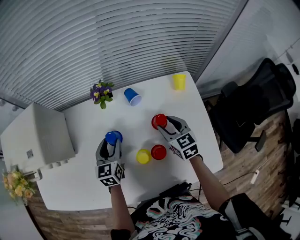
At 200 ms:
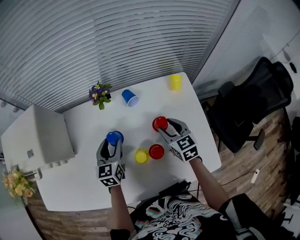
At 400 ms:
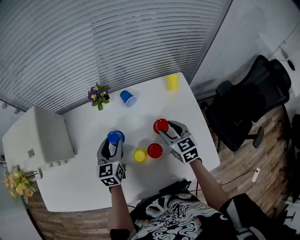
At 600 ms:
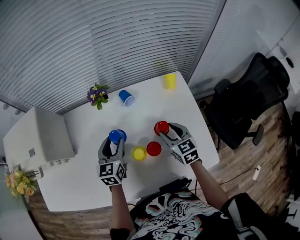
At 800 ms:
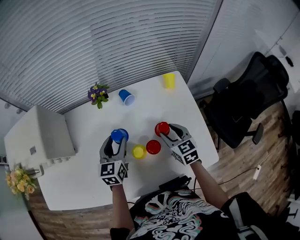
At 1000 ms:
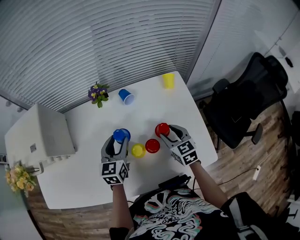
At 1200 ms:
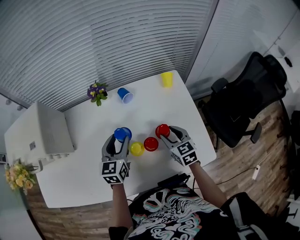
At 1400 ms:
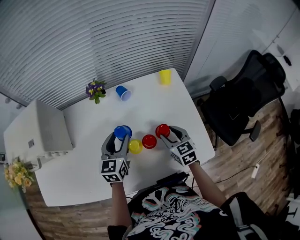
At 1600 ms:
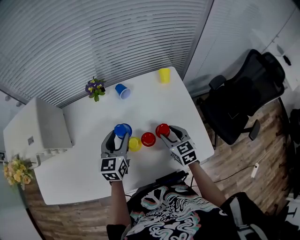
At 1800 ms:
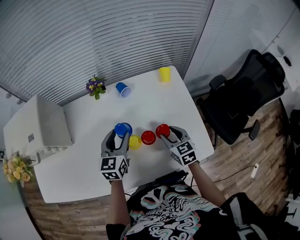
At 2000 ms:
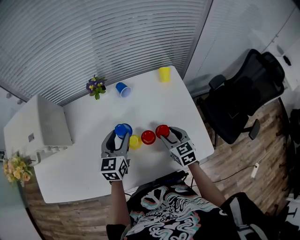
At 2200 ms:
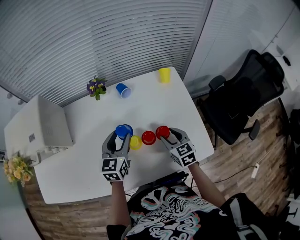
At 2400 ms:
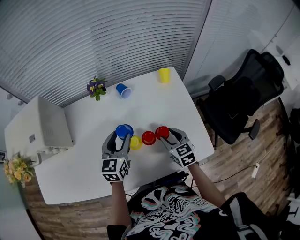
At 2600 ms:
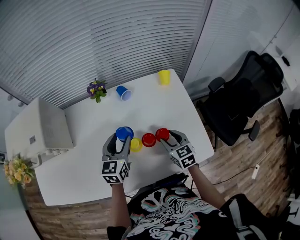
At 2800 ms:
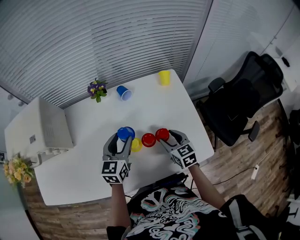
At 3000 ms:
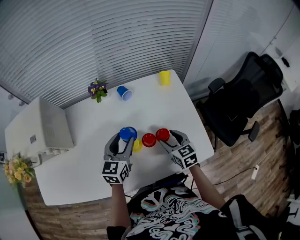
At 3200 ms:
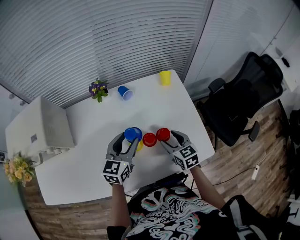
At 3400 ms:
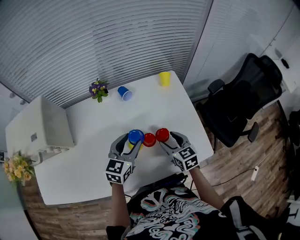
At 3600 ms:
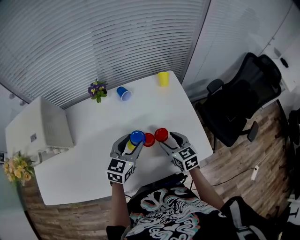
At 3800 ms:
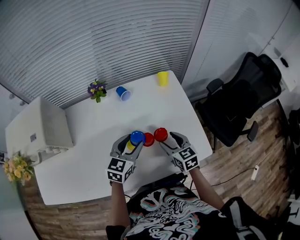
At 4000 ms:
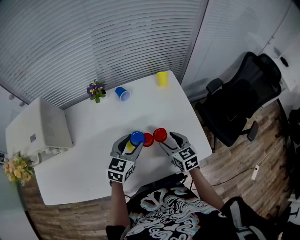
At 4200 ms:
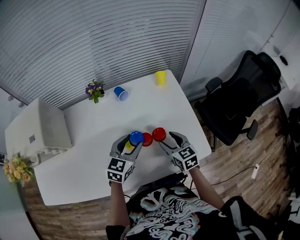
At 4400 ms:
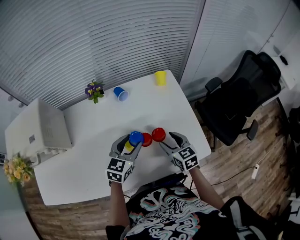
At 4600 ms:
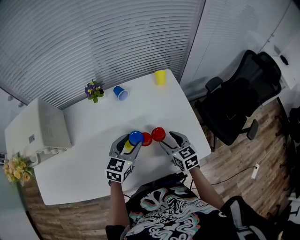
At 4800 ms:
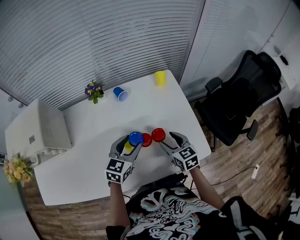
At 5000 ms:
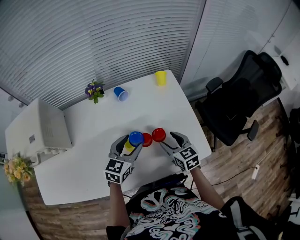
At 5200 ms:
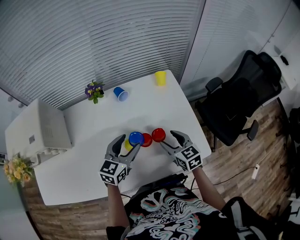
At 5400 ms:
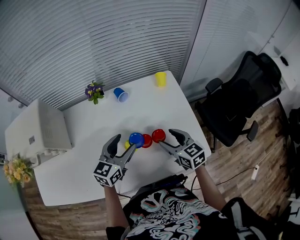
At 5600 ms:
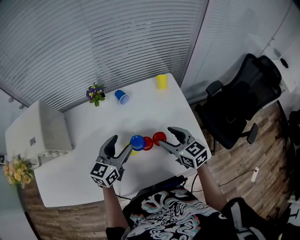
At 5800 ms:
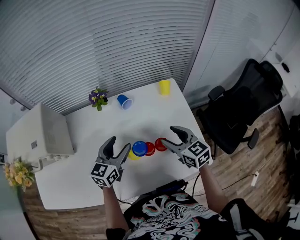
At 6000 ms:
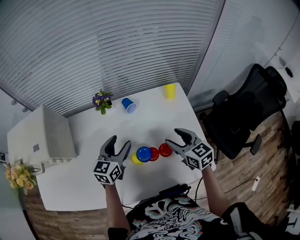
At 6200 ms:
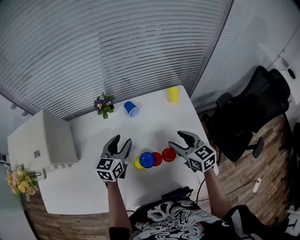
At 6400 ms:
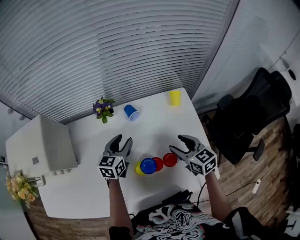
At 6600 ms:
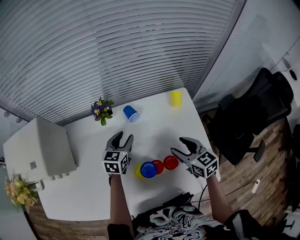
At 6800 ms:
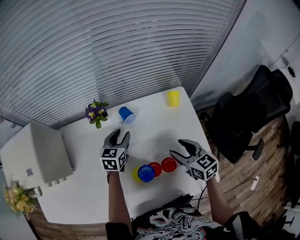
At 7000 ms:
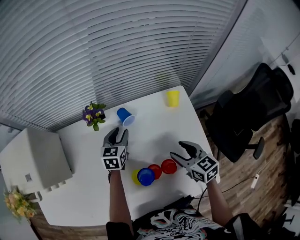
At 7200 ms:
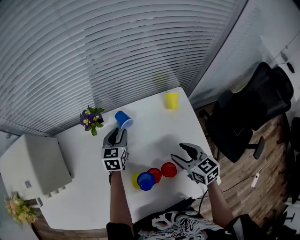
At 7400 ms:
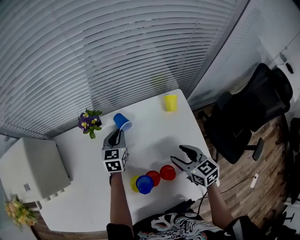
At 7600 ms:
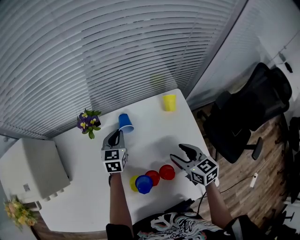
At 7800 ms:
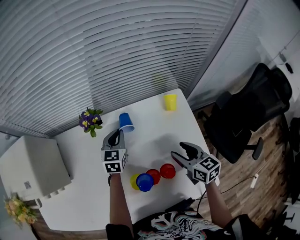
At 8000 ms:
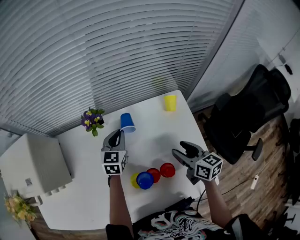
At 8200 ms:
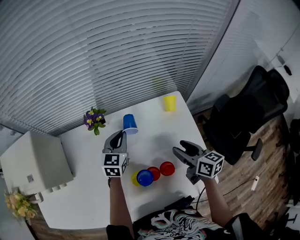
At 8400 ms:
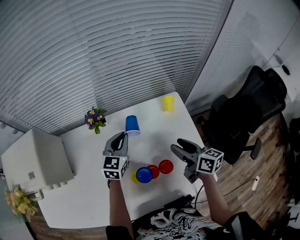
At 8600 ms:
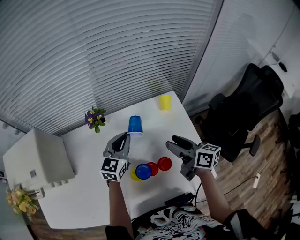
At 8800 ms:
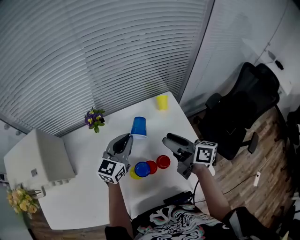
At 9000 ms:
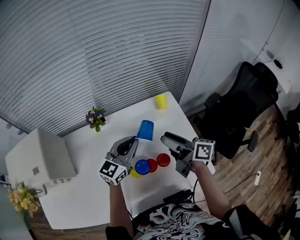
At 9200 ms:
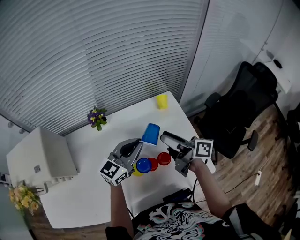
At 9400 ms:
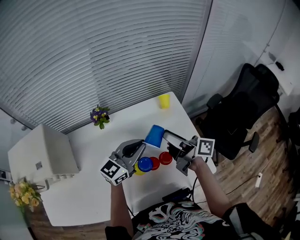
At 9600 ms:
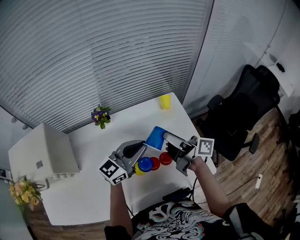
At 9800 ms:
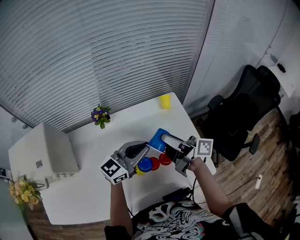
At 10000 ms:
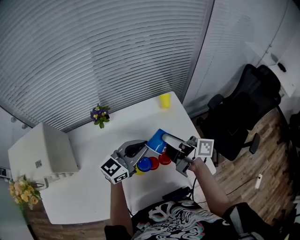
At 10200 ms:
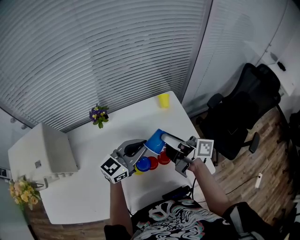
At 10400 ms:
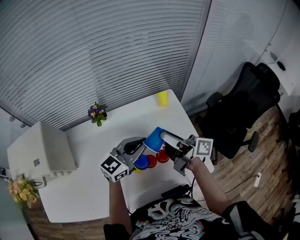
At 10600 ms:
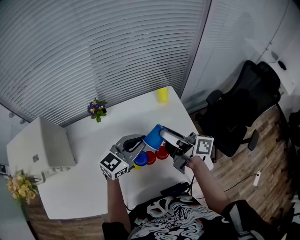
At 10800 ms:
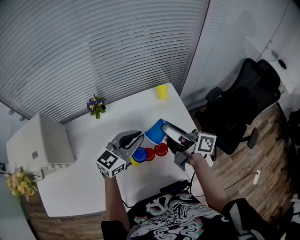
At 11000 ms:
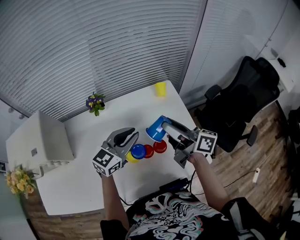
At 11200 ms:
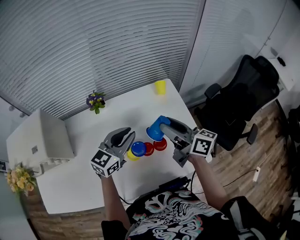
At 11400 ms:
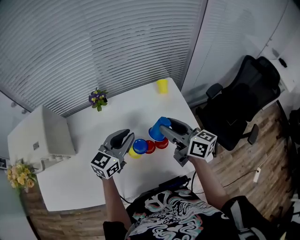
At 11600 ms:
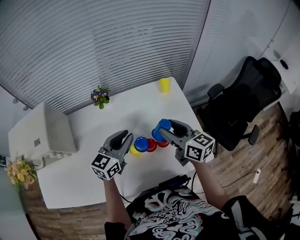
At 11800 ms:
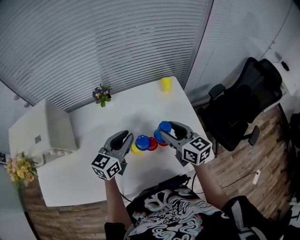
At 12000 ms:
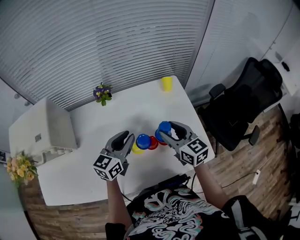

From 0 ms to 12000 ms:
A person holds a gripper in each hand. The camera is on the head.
From 0 ms to 1600 ms: The left gripper is displaced to the right, upward and backward by roughly 10 cm. Meanwhile the right gripper shifts approximately 10 cm backward.
From 1600 ms to 3000 ms: The grippers stay close to where they were, moving slightly.
From 3000 ms to 4400 ms: The left gripper moves to the right, approximately 5 cm.
From 4400 ms to 6000 ms: The left gripper travels to the left and forward by approximately 10 cm, while the right gripper is displaced upward and forward by approximately 10 cm.
From 6000 ms to 7600 ms: The right gripper goes approximately 5 cm downward; the left gripper goes roughly 20 cm forward and downward, and closes up.
From 7600 ms to 9000 ms: The left gripper shifts roughly 20 cm upward and backward, and changes its angle by about 40 degrees; the right gripper heads upward, covering about 15 cm, and tips its fingers upward by approximately 30 degrees.
From 9000 ms to 10400 ms: The left gripper changes place by some 5 cm.
From 10400 ms to 12000 ms: The left gripper travels to the left by approximately 10 cm, and rotates some 30 degrees, while the right gripper heads downward and backward, covering roughly 10 cm, and twists about 50 degrees counterclockwise, seen from behind.

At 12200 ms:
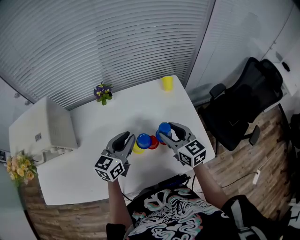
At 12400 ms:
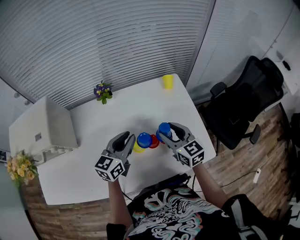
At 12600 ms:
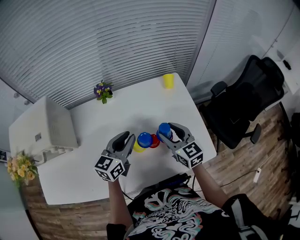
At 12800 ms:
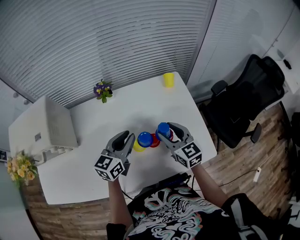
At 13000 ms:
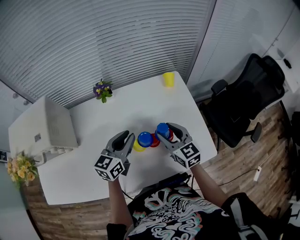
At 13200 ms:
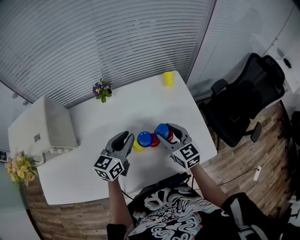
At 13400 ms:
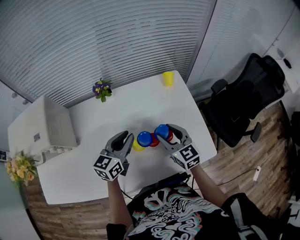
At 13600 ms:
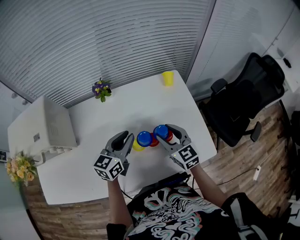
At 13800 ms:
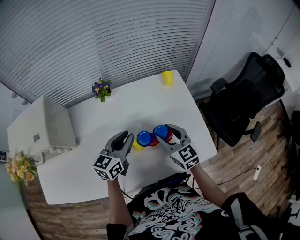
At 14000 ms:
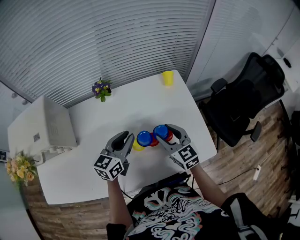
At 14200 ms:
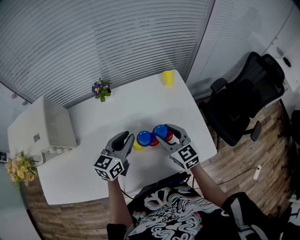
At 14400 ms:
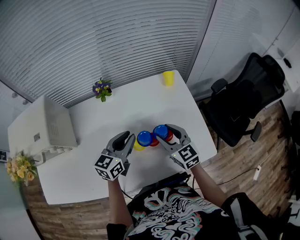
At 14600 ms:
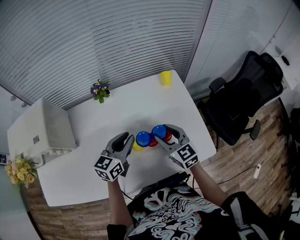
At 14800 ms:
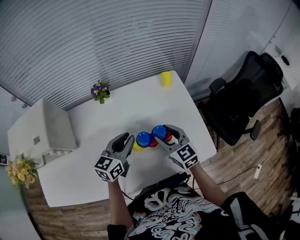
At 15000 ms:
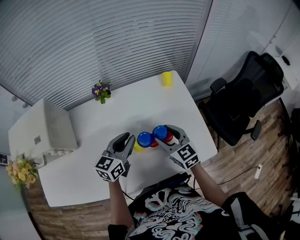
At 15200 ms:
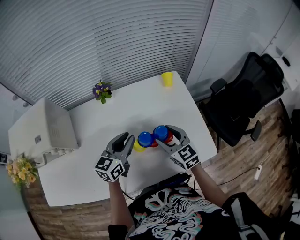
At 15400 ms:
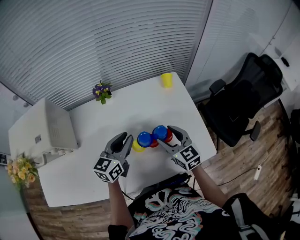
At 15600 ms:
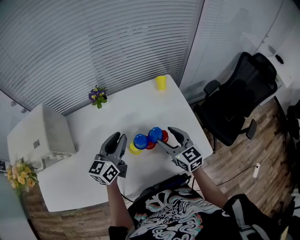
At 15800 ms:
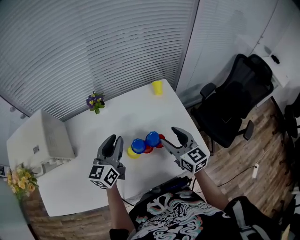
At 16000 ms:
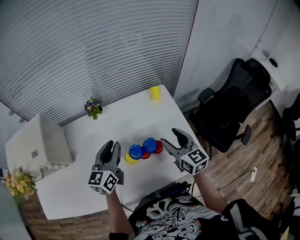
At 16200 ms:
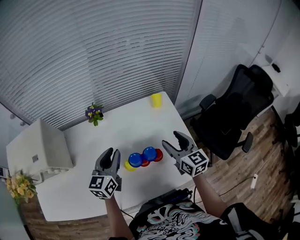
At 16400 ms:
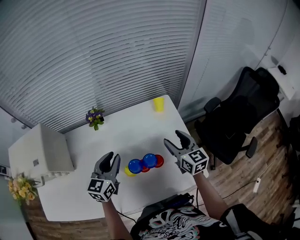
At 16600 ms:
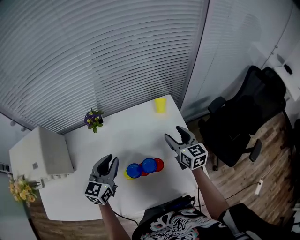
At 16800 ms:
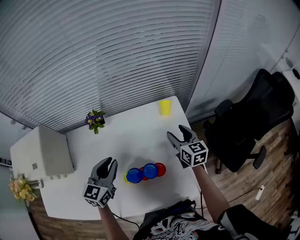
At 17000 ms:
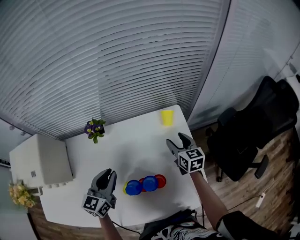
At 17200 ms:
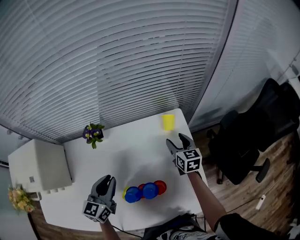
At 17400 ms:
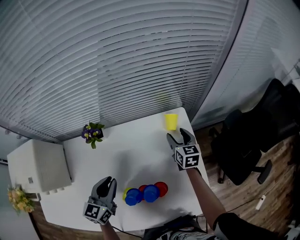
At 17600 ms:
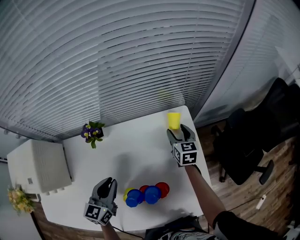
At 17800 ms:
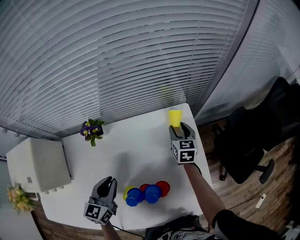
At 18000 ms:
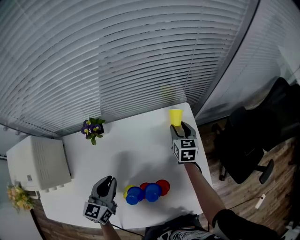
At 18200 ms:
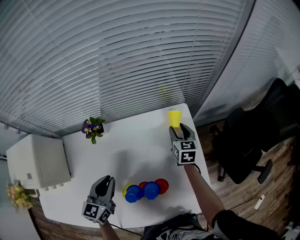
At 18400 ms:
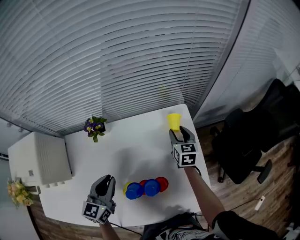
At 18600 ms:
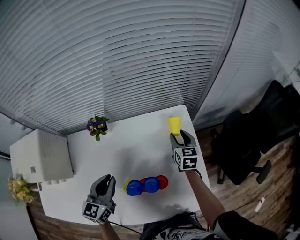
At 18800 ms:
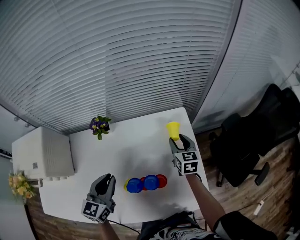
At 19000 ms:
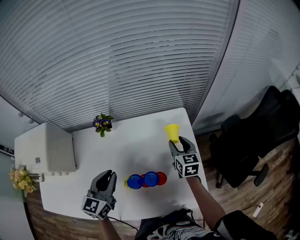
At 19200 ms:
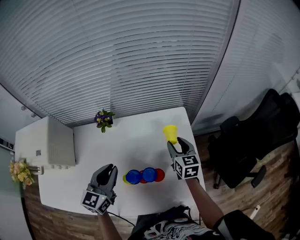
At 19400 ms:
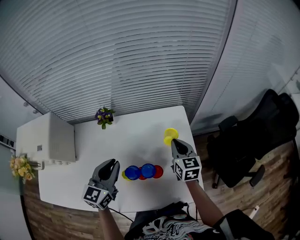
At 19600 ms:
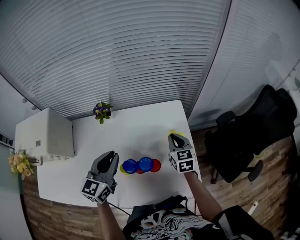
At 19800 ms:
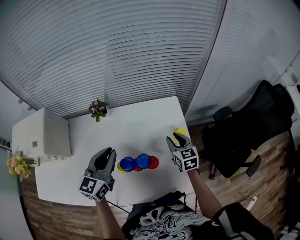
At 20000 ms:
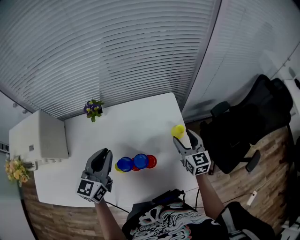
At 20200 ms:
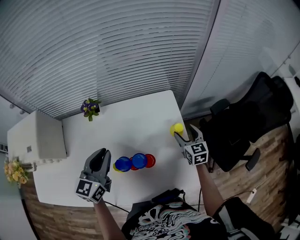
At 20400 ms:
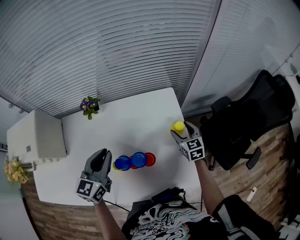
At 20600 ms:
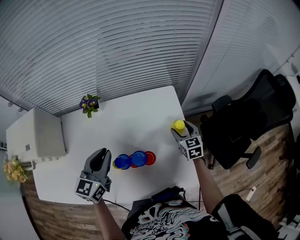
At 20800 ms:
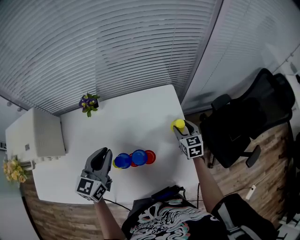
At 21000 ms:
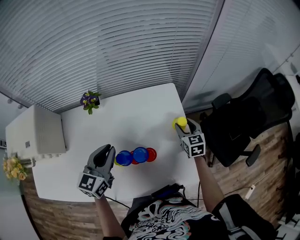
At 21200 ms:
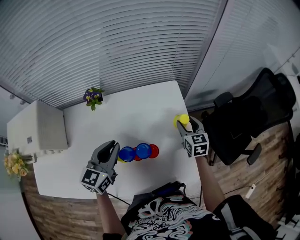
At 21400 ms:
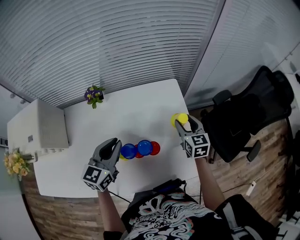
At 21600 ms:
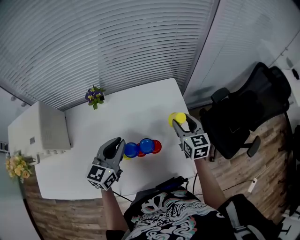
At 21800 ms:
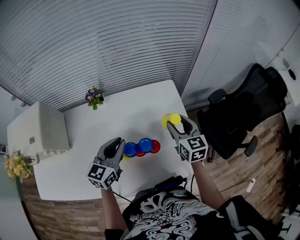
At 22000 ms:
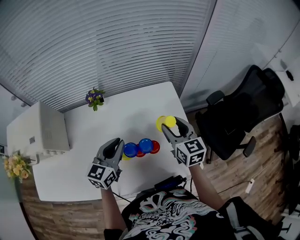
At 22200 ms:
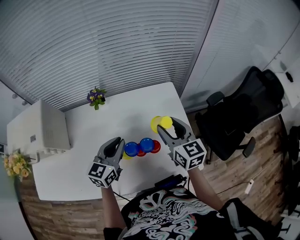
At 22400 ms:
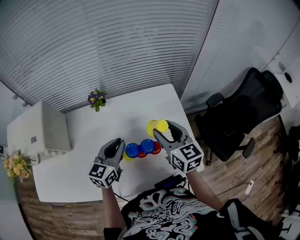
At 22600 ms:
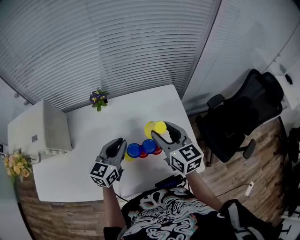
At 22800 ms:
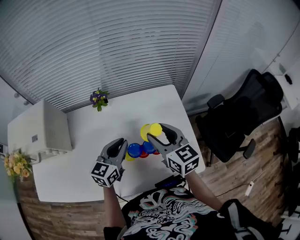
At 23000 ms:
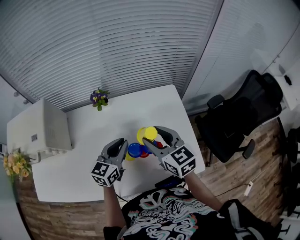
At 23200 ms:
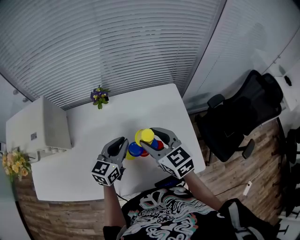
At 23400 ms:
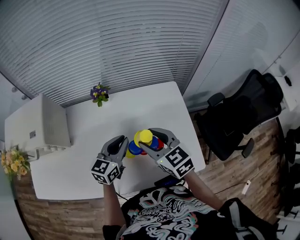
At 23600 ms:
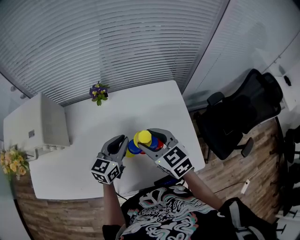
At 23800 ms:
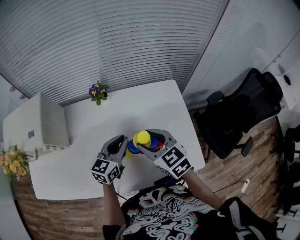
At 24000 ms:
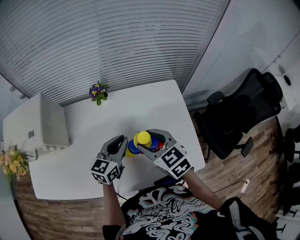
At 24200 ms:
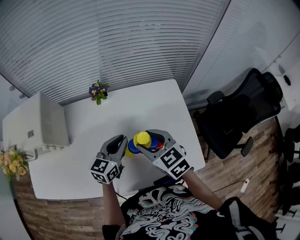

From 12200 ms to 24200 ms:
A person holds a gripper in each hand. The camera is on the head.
From 12200 ms to 13800 ms: The grippers stay close to where they were, moving slightly.
From 13800 ms to 15200 ms: The two grippers keep their place.
From 15200 ms to 16600 ms: The right gripper travels forward and to the right by approximately 20 cm. The left gripper moves approximately 5 cm.
From 16600 ms to 18200 ms: The left gripper travels downward by approximately 5 cm. The right gripper shifts approximately 20 cm forward and downward.
From 18200 ms to 19800 ms: The left gripper heads upward and to the right, covering approximately 10 cm; the right gripper is displaced backward by some 15 cm, and closes and opens again.
From 19800 ms to 21200 ms: The right gripper travels to the right by about 5 cm, and travels downward and back again, approximately 5 cm each way.
From 21200 ms to 22600 ms: The right gripper goes approximately 25 cm upward, to the left and backward, and swivels about 20 degrees.
From 22600 ms to 24200 ms: The right gripper travels to the left by approximately 10 cm, and swivels some 30 degrees.
